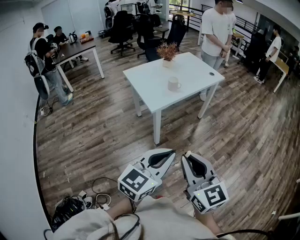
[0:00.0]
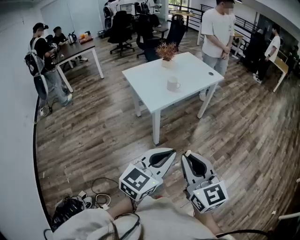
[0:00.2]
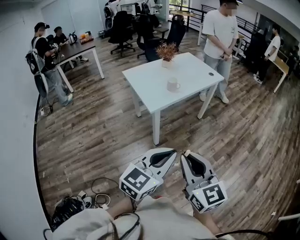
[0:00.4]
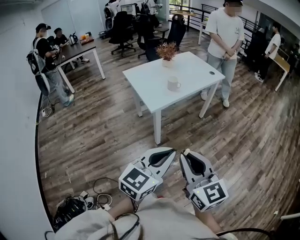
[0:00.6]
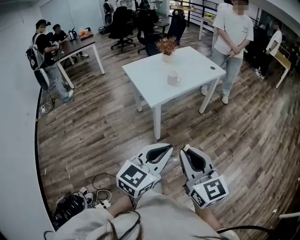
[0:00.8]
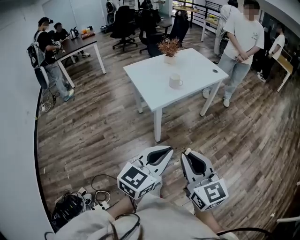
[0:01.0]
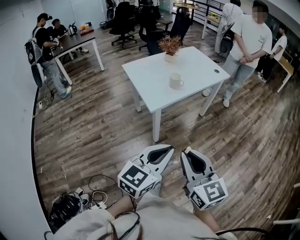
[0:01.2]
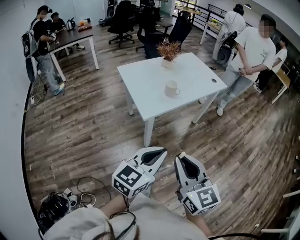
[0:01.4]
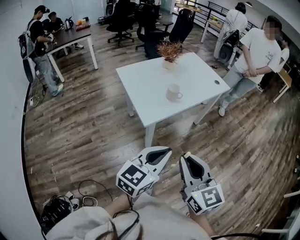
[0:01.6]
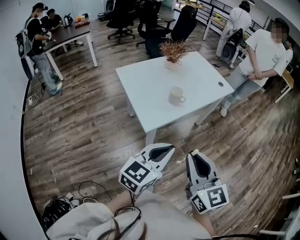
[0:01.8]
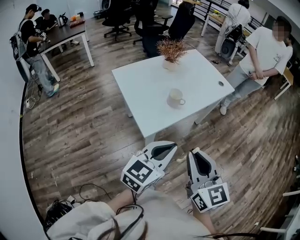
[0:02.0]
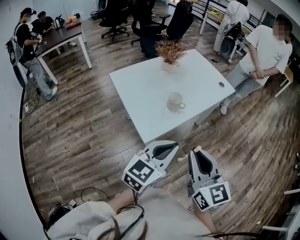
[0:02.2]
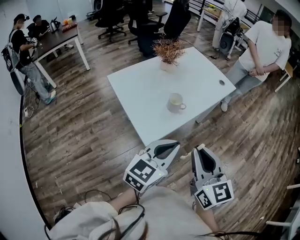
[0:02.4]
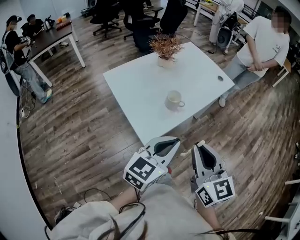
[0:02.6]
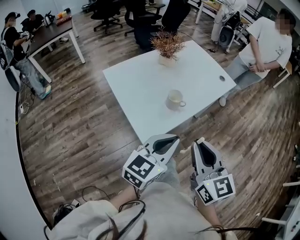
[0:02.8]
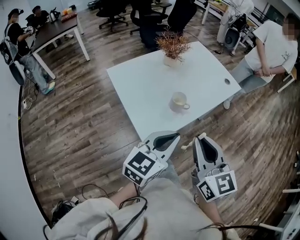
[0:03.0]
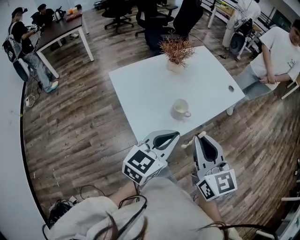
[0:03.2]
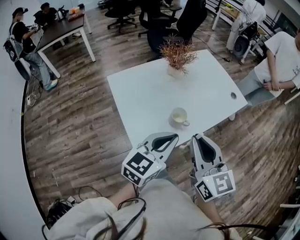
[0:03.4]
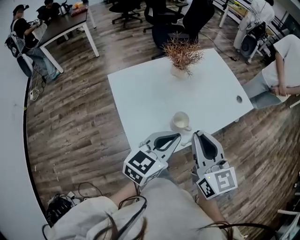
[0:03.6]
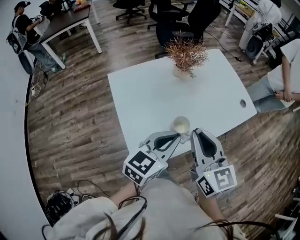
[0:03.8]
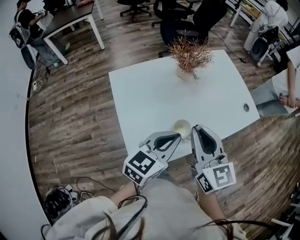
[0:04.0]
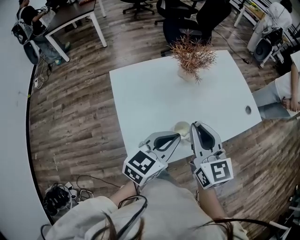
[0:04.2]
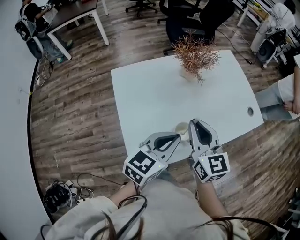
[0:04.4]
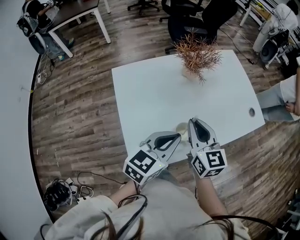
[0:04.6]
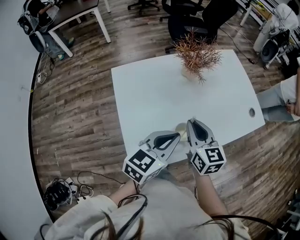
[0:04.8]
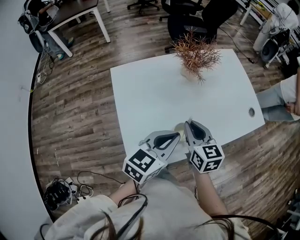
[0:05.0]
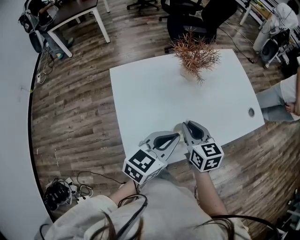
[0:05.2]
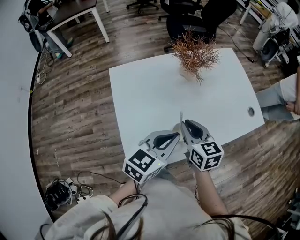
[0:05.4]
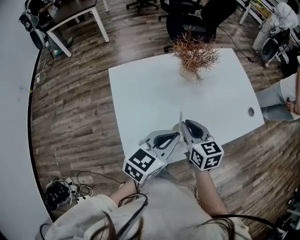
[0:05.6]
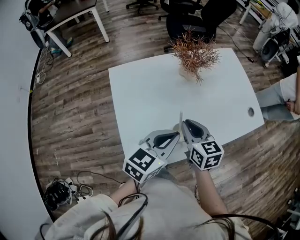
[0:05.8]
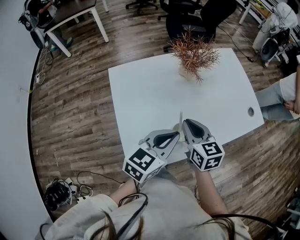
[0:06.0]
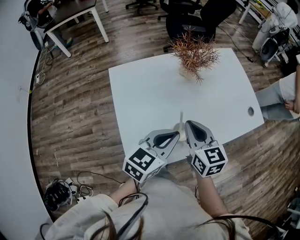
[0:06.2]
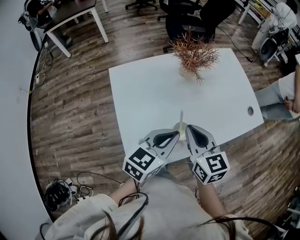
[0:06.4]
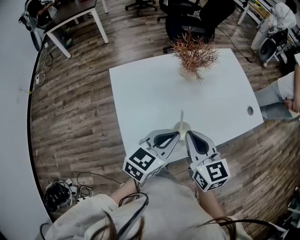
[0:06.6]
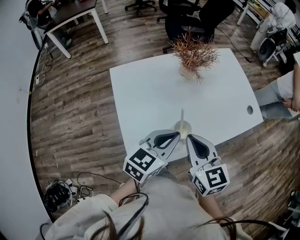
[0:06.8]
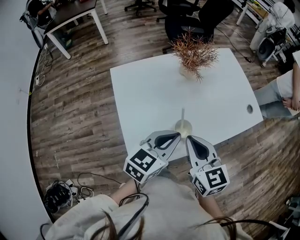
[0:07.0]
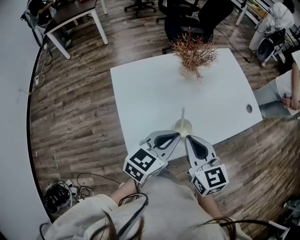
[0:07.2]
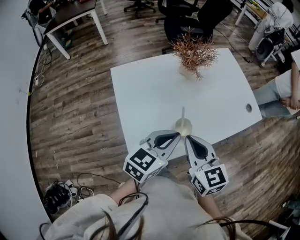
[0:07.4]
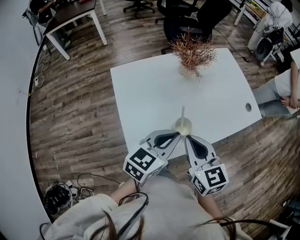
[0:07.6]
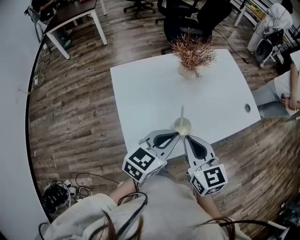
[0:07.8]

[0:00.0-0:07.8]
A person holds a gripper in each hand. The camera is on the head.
0.0 to 1.6 s: The grippers both shift forward by approximately 20 cm.
1.6 to 3.2 s: Both grippers move forward, some 25 cm.
3.2 to 4.6 s: The left gripper goes approximately 15 cm forward and downward; the right gripper moves forward and downward, some 25 cm.
4.6 to 6.2 s: The grippers stay close to where they were, moving slightly.
6.2 to 7.8 s: The right gripper goes approximately 10 cm backward.

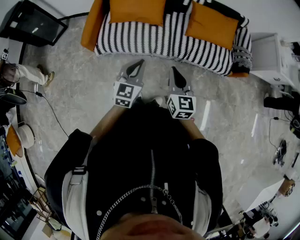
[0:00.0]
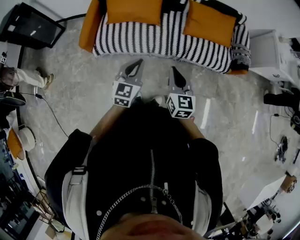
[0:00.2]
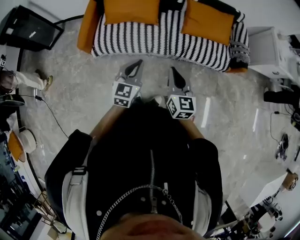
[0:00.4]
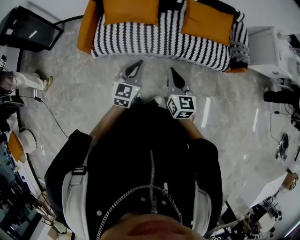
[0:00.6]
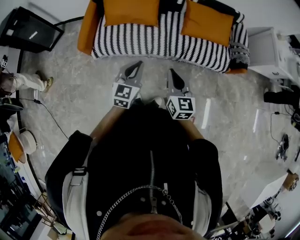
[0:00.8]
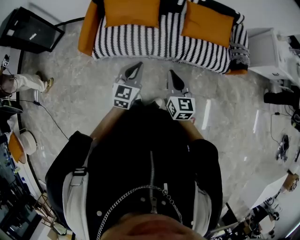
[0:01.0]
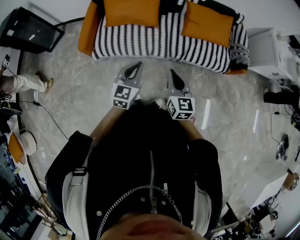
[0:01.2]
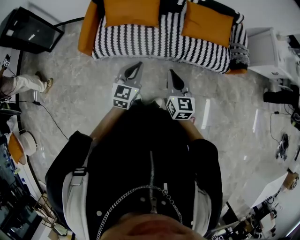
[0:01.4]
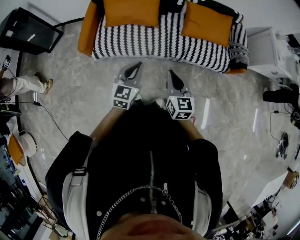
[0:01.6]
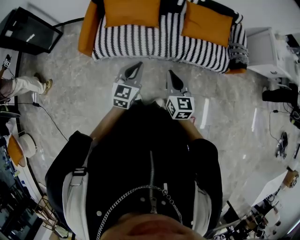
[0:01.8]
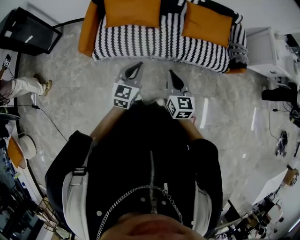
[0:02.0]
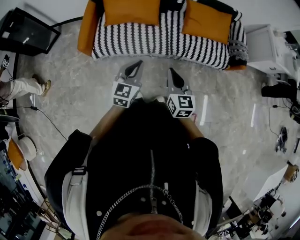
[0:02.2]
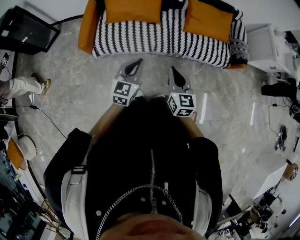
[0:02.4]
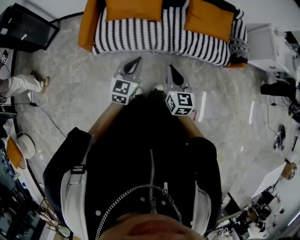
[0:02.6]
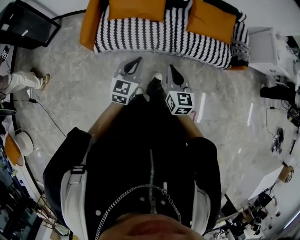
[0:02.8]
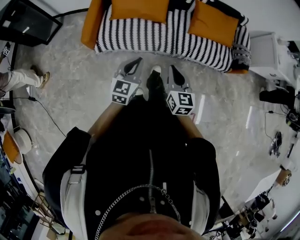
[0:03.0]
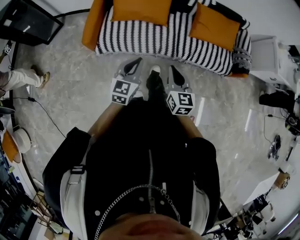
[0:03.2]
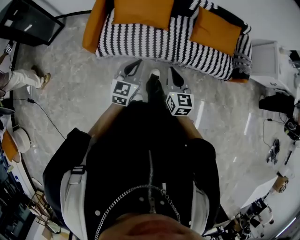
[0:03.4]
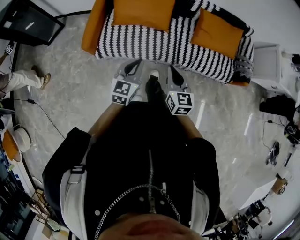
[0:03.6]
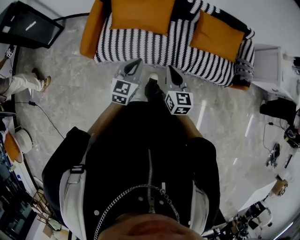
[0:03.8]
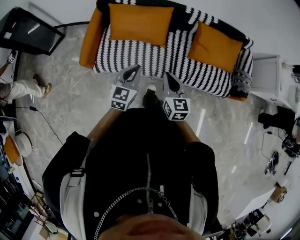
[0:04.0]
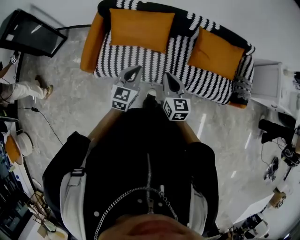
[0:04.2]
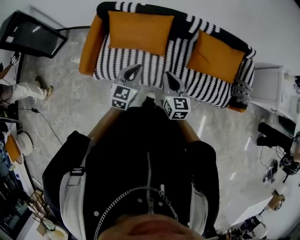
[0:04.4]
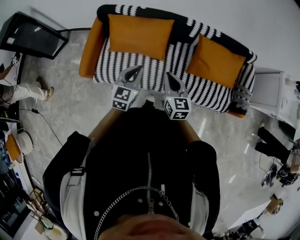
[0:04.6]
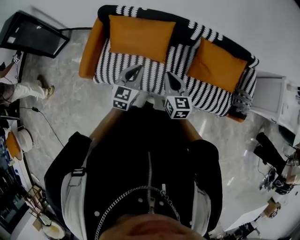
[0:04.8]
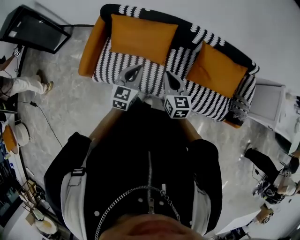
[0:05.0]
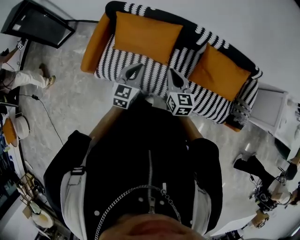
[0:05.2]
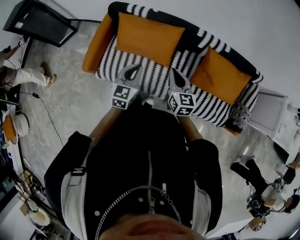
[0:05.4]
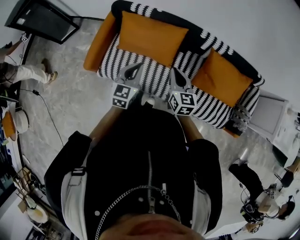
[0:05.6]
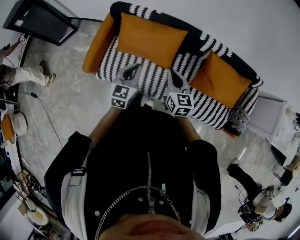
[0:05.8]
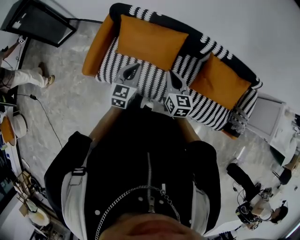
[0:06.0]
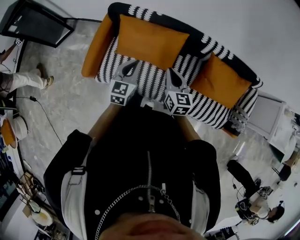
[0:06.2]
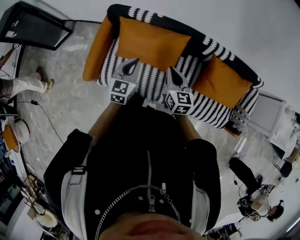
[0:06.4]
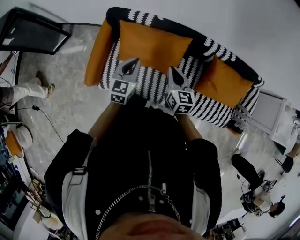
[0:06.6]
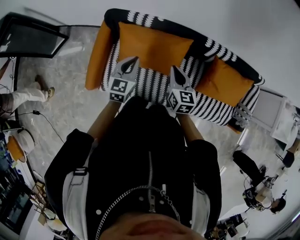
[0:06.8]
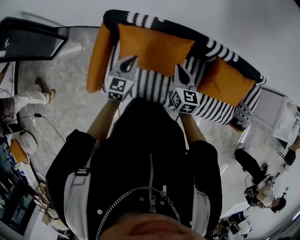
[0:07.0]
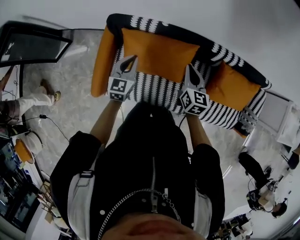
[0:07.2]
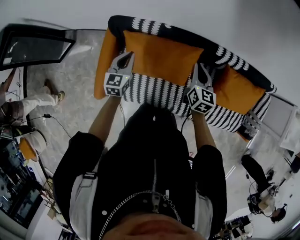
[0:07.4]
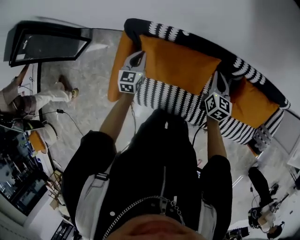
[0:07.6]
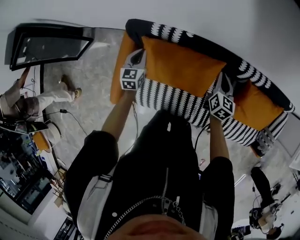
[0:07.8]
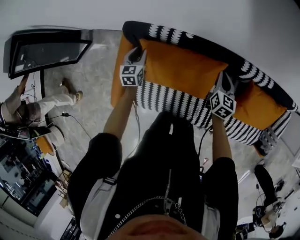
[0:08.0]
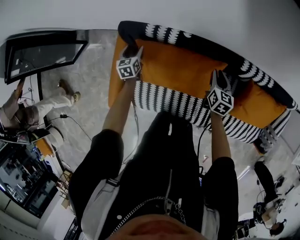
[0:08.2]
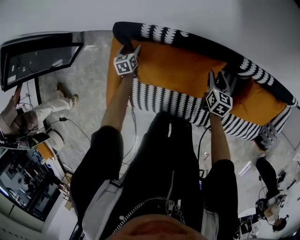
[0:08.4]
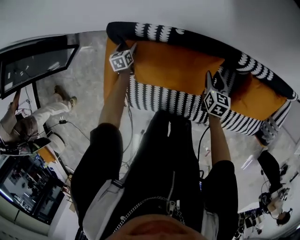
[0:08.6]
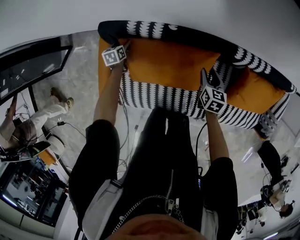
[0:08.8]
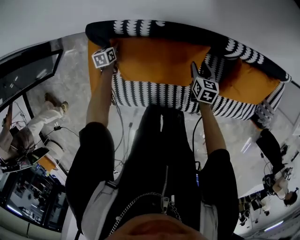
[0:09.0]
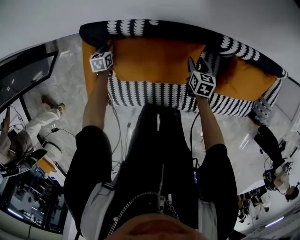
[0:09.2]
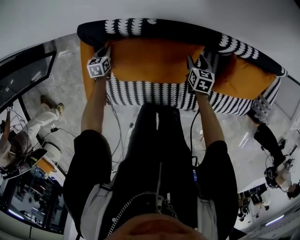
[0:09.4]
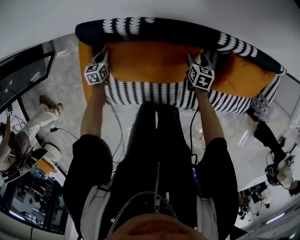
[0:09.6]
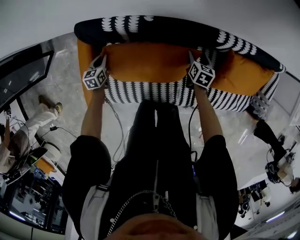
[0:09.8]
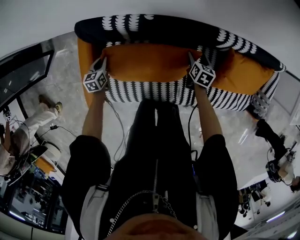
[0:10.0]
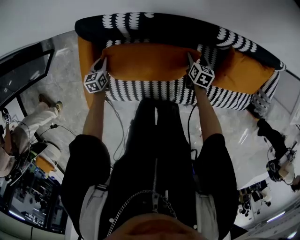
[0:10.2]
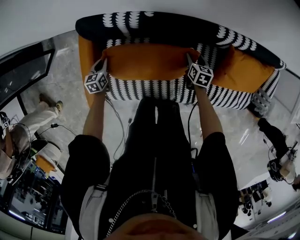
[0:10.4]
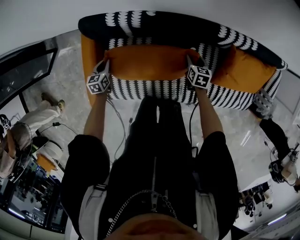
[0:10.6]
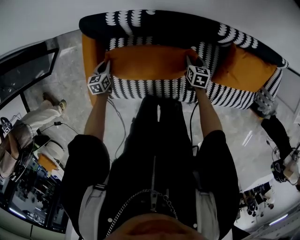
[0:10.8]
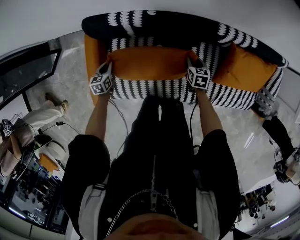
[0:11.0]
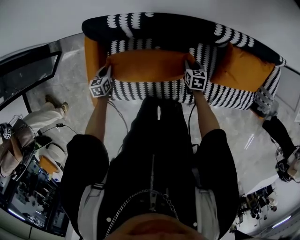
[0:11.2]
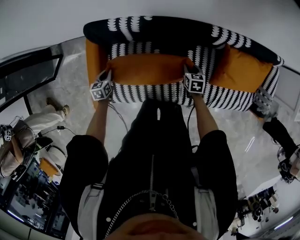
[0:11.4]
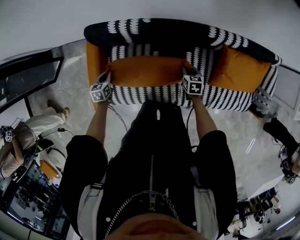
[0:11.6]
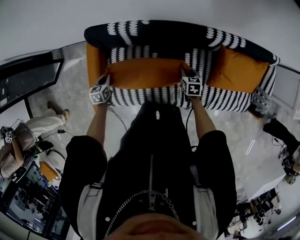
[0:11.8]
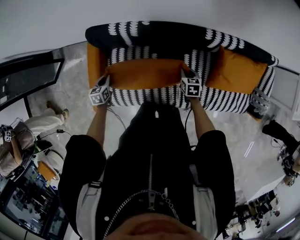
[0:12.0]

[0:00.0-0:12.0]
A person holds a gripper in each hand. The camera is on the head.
0.0 to 1.6 s: The grippers move only a little.
1.6 to 3.0 s: Both grippers move to the left, some 10 cm.
3.0 to 4.4 s: The grippers both shift forward by approximately 30 cm.
4.4 to 6.0 s: Both grippers move forward, approximately 15 cm.
6.0 to 7.6 s: The left gripper moves forward and to the left, roughly 35 cm. Meanwhile the right gripper goes some 30 cm forward, and swivels roughly 20 degrees.
7.6 to 9.0 s: The left gripper travels downward and forward by approximately 30 cm, changes its angle by roughly 30 degrees, and opens its fingers. Meanwhile the right gripper travels downward by roughly 20 cm, swivels approximately 20 degrees, and opens up.
9.0 to 10.4 s: The right gripper is displaced to the right by roughly 5 cm. The left gripper heads backward and upward, covering some 15 cm.
10.4 to 12.0 s: The left gripper moves backward and upward, some 10 cm. Meanwhile the right gripper travels backward by about 10 cm, and closes.

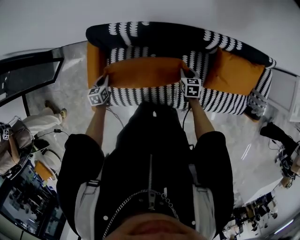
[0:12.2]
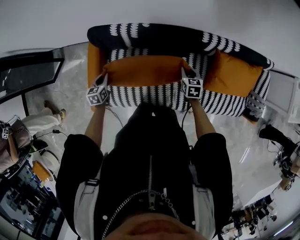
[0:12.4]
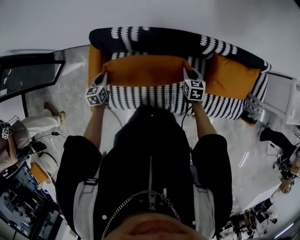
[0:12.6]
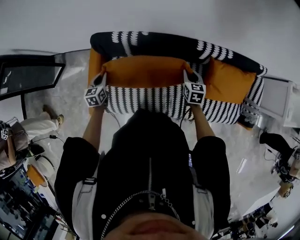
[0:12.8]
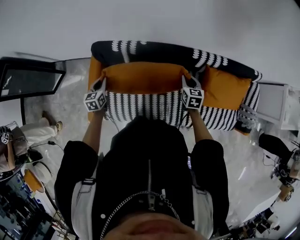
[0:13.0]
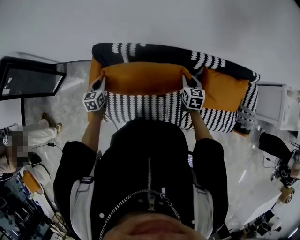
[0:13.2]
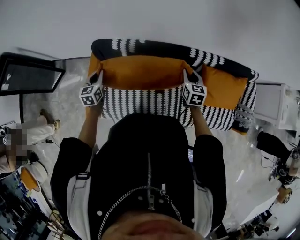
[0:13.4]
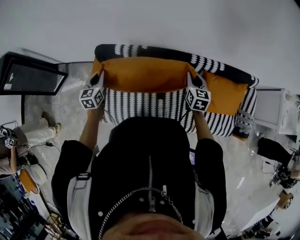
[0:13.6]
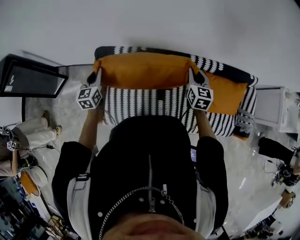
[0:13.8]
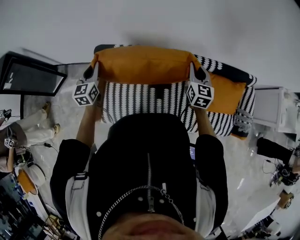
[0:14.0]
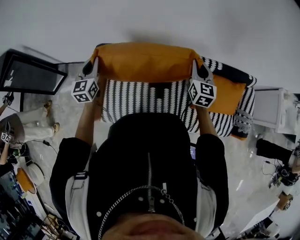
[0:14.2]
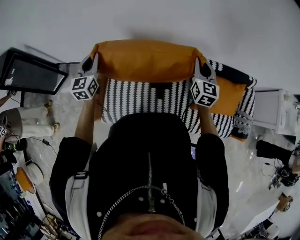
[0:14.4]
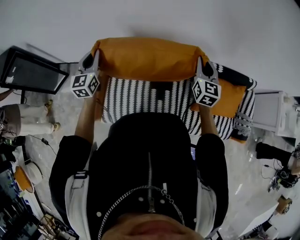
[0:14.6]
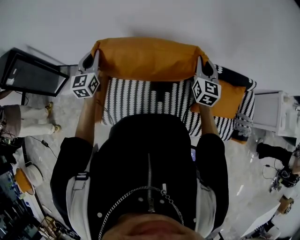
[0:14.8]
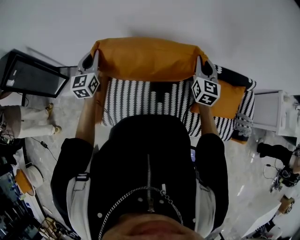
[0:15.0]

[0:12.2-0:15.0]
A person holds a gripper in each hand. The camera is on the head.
12.2 to 13.6 s: Both grippers move upward, about 25 cm. The left gripper turns by approximately 30 degrees. The right gripper changes its angle by approximately 30 degrees.
13.6 to 15.0 s: Both grippers move upward, roughly 15 cm. The left gripper changes its angle by roughly 20 degrees. The right gripper rotates about 20 degrees.

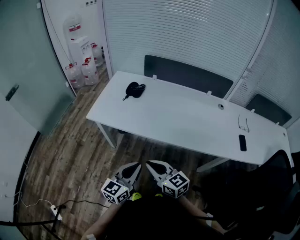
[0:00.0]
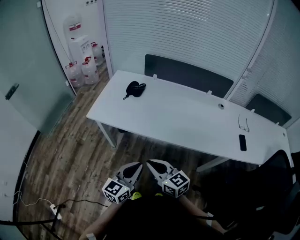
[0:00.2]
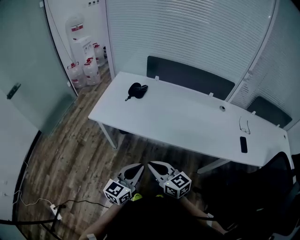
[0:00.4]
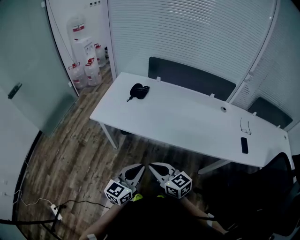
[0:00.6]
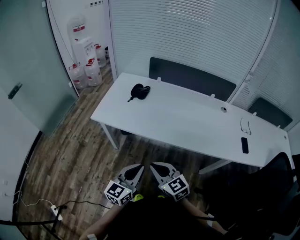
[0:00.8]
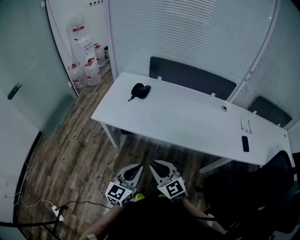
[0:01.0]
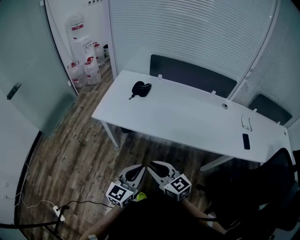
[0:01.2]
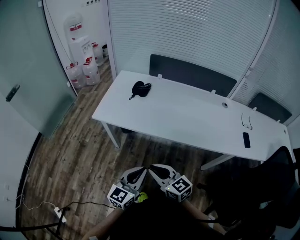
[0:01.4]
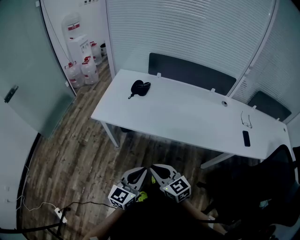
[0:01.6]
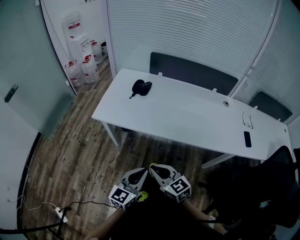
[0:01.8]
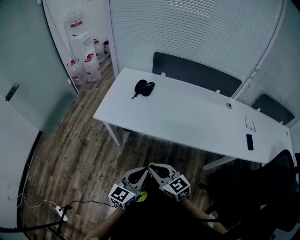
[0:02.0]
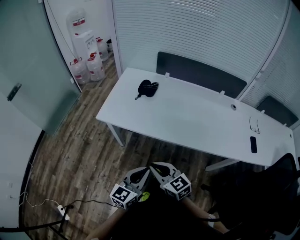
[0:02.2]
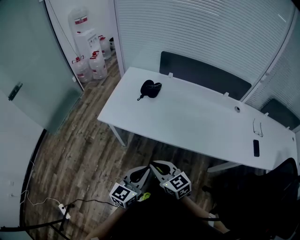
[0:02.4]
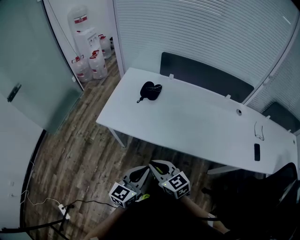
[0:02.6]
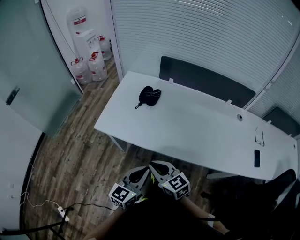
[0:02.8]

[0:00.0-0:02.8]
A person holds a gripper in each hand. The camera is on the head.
0.0 to 1.4 s: The right gripper changes place by about 5 cm.
1.4 to 2.8 s: Both grippers move forward, roughly 15 cm.
